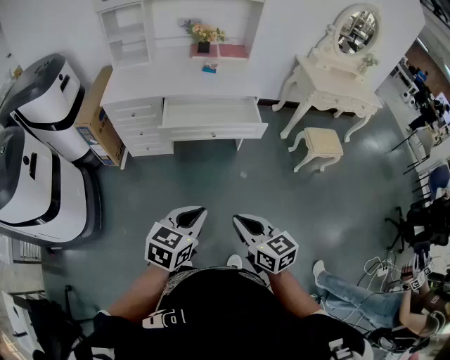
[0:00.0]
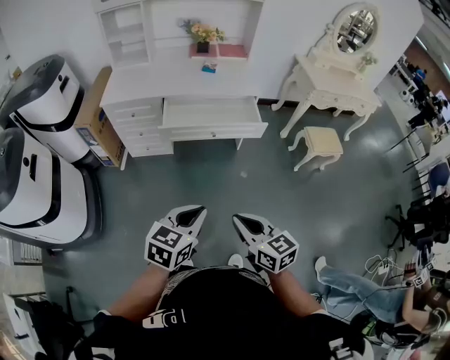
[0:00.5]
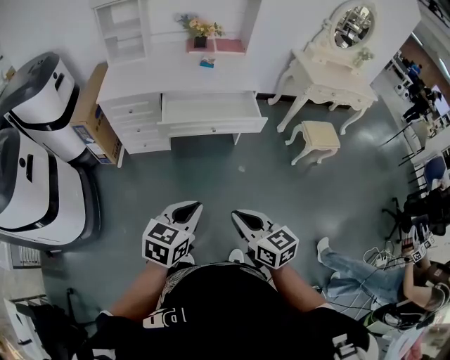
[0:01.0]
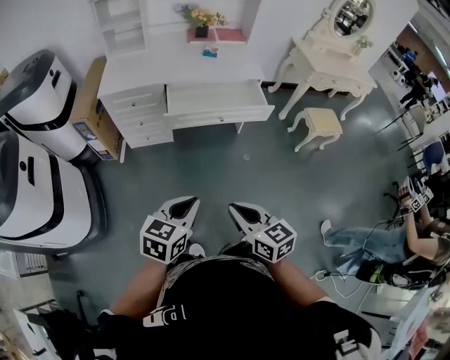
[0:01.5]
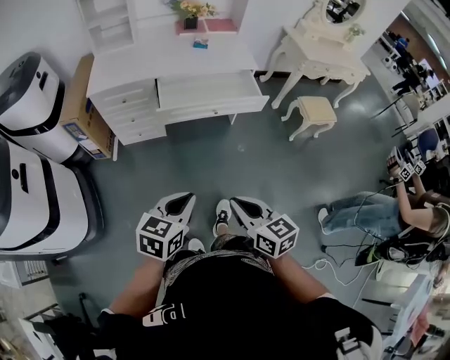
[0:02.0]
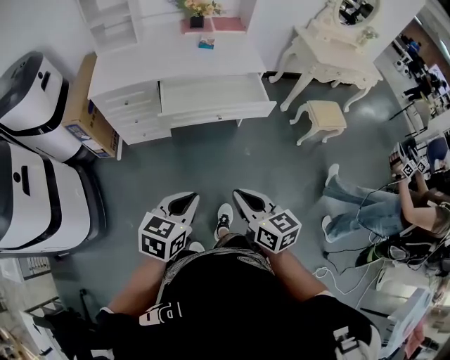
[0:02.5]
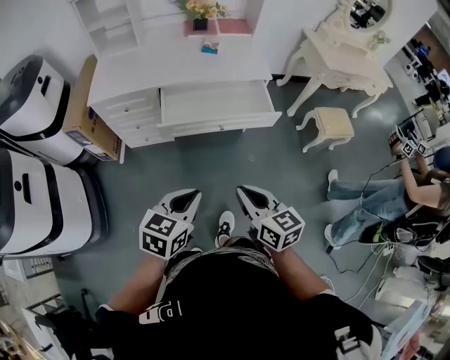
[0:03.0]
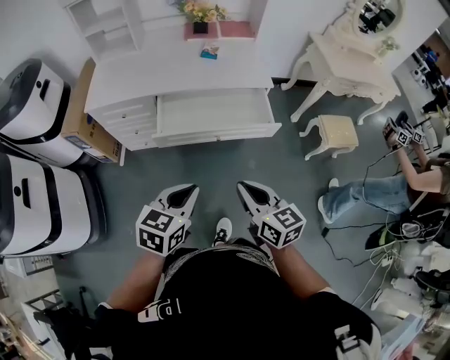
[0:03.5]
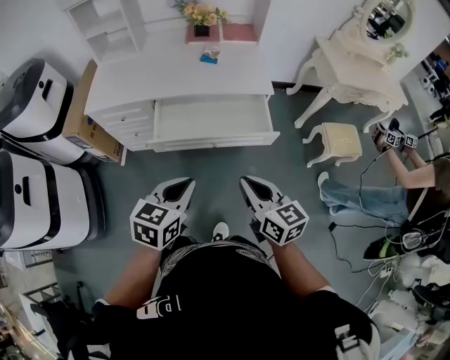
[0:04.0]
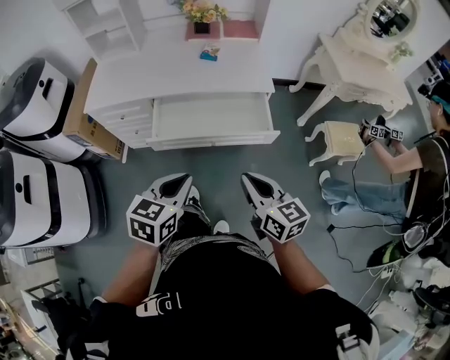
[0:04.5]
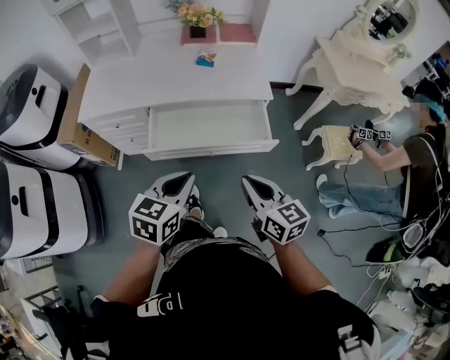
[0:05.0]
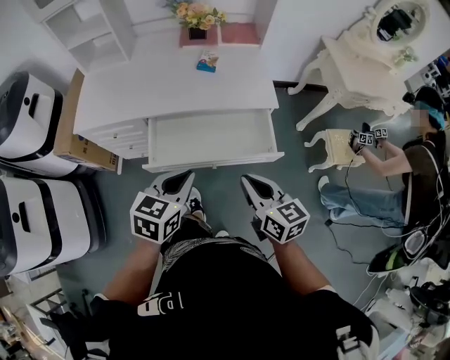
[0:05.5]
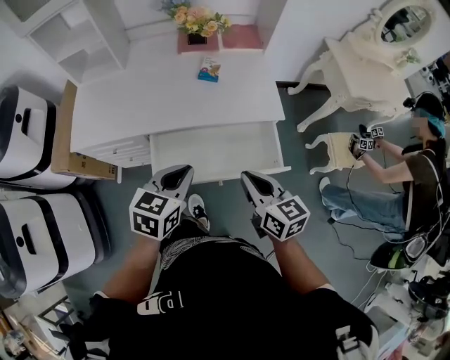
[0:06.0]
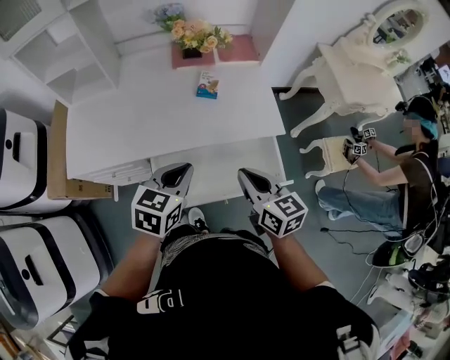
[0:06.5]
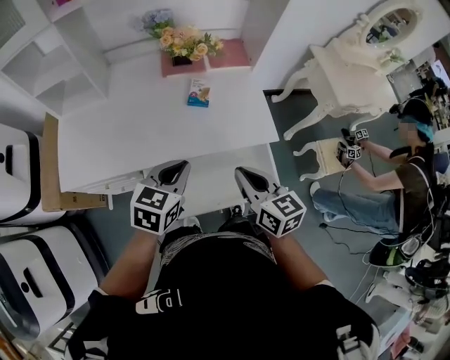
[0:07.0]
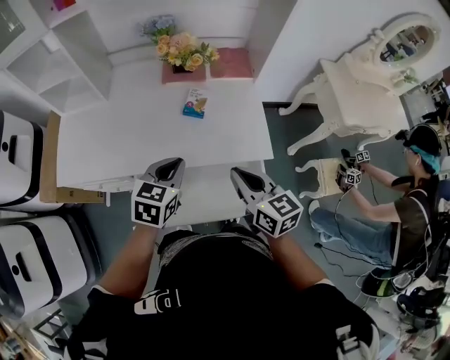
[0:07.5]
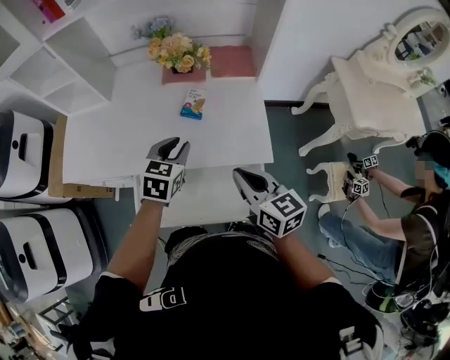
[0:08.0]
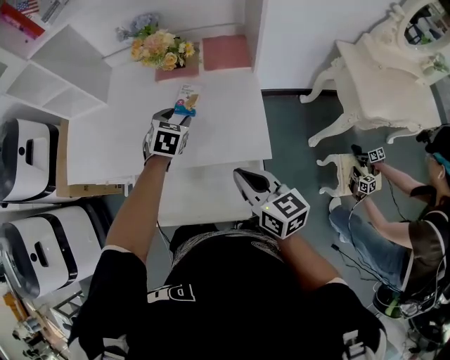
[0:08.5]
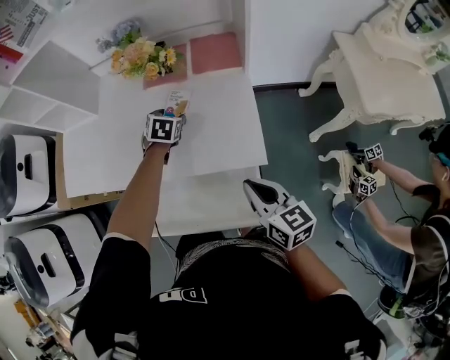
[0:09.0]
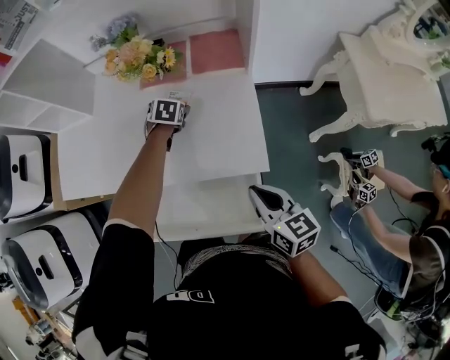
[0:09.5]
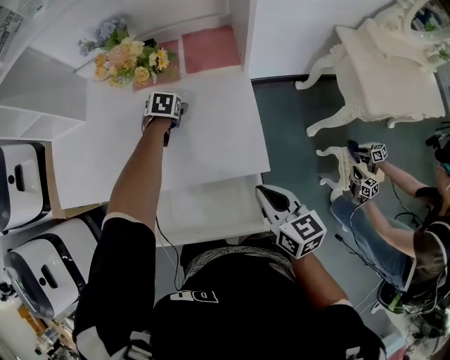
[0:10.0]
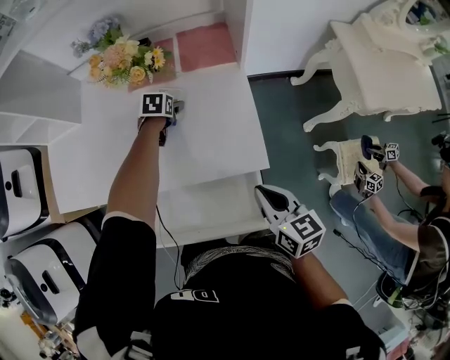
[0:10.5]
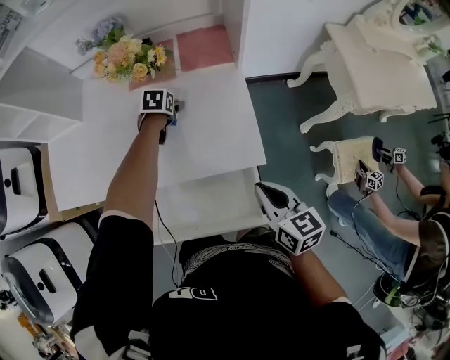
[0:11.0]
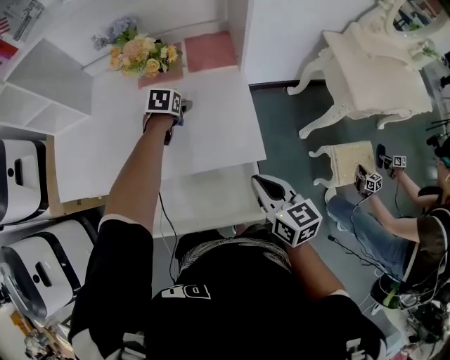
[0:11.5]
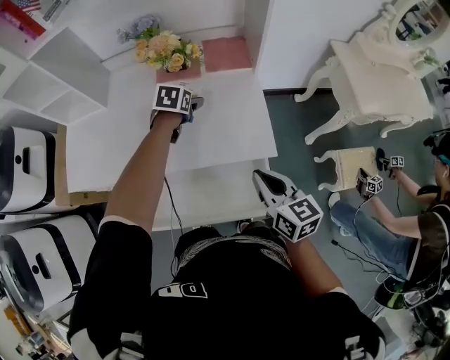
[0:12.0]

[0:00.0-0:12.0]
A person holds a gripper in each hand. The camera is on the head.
0:00.0 to 0:02.0: Both grippers travel together to the left, roughly 10 cm.
0:02.0 to 0:04.0: The grippers both shift forward and to the right by approximately 30 cm.
0:04.0 to 0:06.0: Both grippers travel together forward, approximately 25 cm.
0:06.0 to 0:08.0: The right gripper heads forward and to the right, covering some 20 cm. Meanwhile the left gripper moves forward, roughly 25 cm.
0:08.0 to 0:10.0: The right gripper heads to the right and downward, covering some 15 cm, while the left gripper is displaced forward and downward by approximately 30 cm, turns by some 30 degrees, and opens.
0:10.0 to 0:12.0: The right gripper heads to the left and upward, covering some 10 cm. Meanwhile the left gripper shifts approximately 15 cm upward and backward.

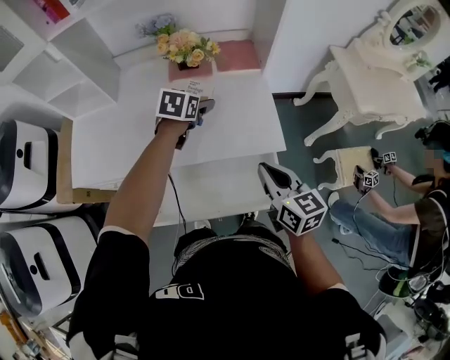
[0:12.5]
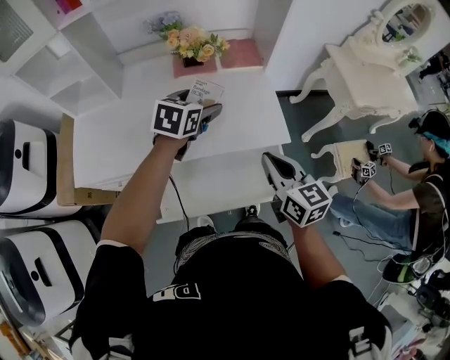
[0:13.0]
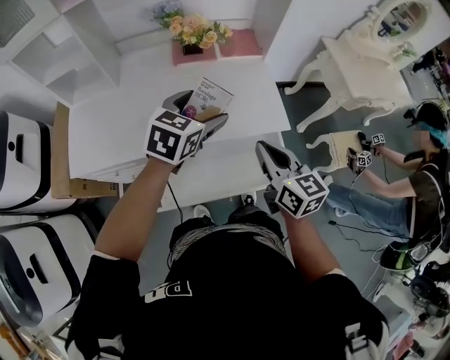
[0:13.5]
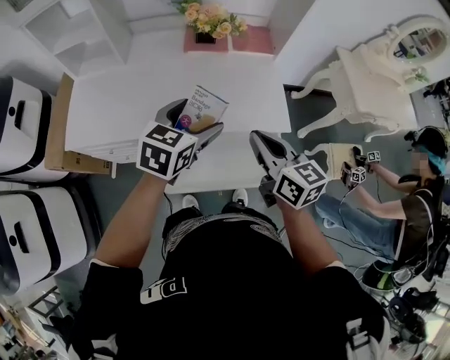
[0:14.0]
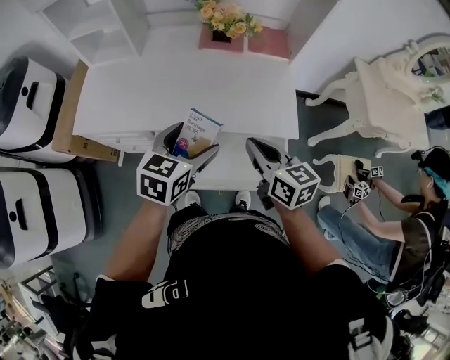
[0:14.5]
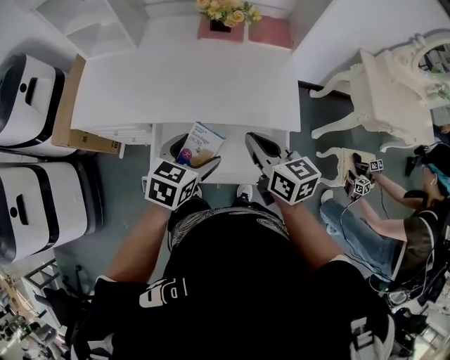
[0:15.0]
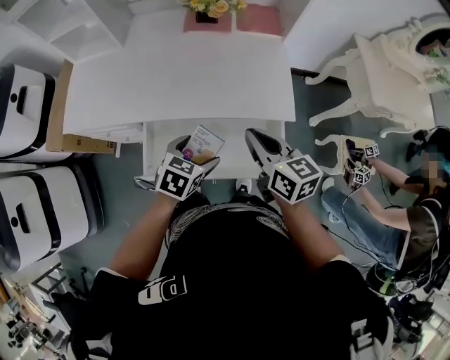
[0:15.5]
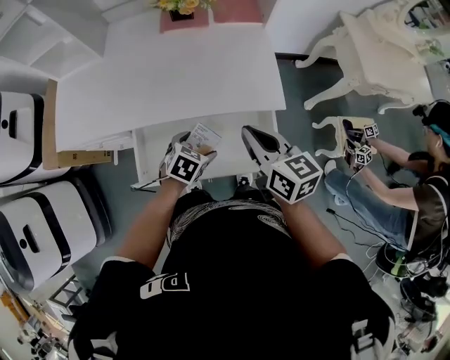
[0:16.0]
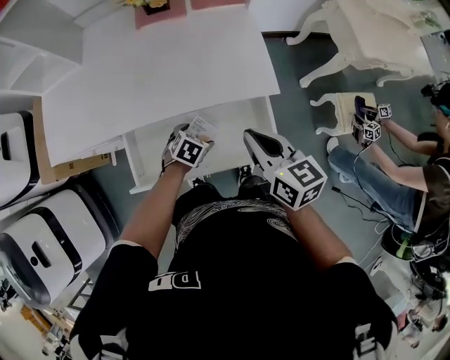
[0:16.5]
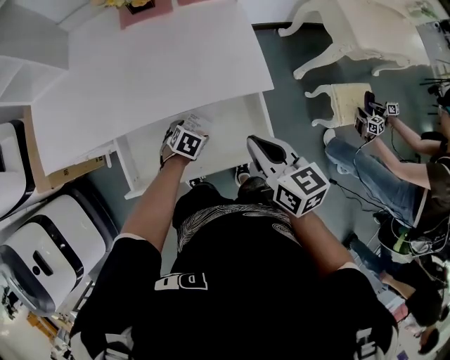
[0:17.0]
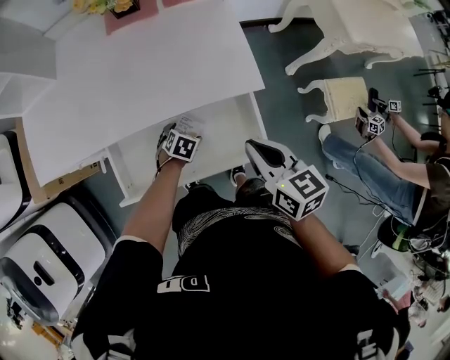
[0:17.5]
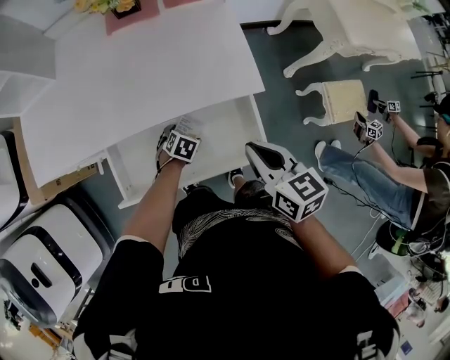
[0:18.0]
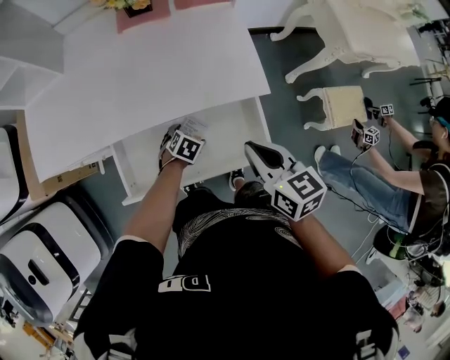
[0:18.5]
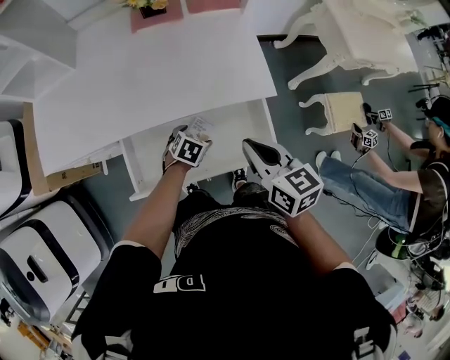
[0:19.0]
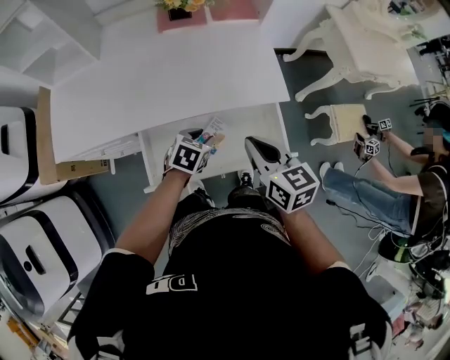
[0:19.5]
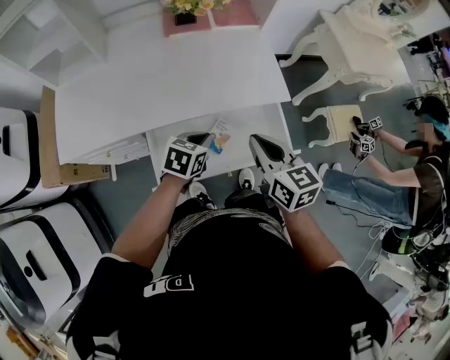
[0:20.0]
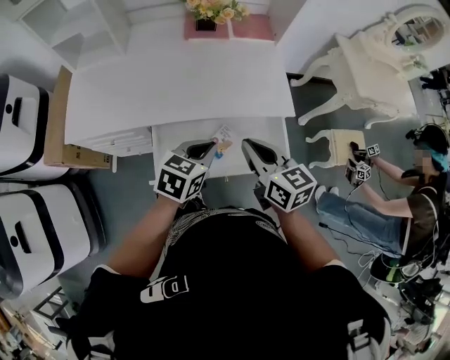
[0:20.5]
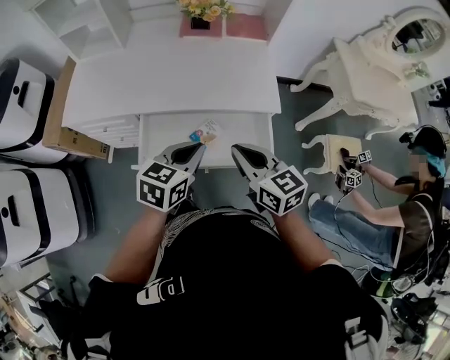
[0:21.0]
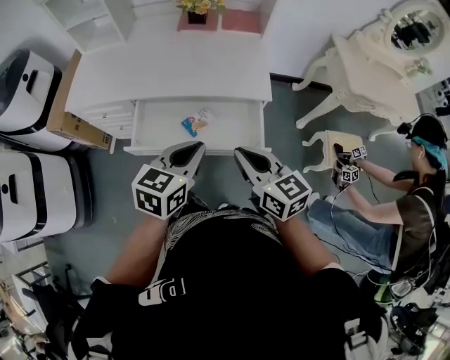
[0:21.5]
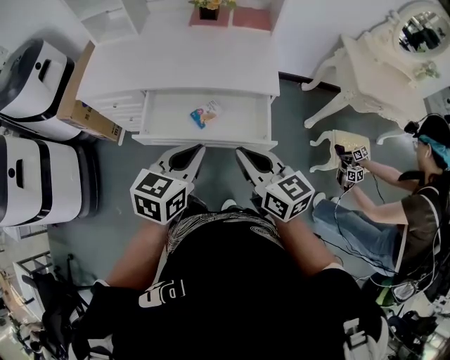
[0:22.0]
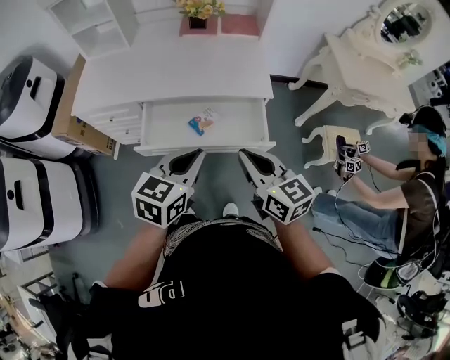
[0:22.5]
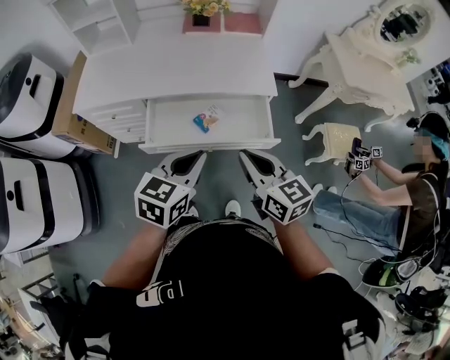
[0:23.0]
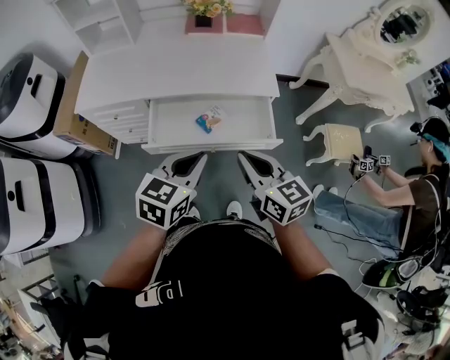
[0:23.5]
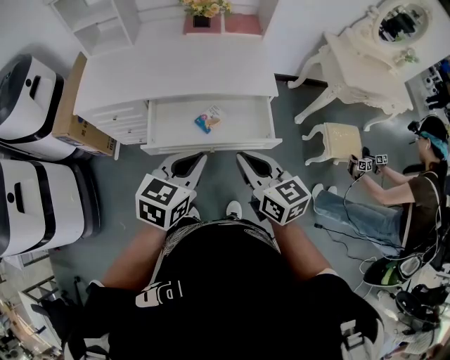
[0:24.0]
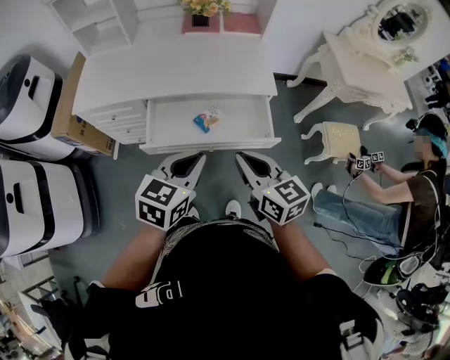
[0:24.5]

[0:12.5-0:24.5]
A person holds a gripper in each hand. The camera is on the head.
0:12.5 to 0:14.5: The right gripper heads to the left, covering some 10 cm. The left gripper moves backward, approximately 25 cm.
0:14.5 to 0:16.5: The left gripper travels downward by about 30 cm, and tips its fingers downward by roughly 40 degrees. The right gripper goes roughly 10 cm to the right and downward.
0:16.5 to 0:18.5: The left gripper heads downward, covering roughly 5 cm.
0:18.5 to 0:20.5: The right gripper is displaced to the left, backward and upward by approximately 15 cm. Meanwhile the left gripper is displaced upward by roughly 30 cm, points its fingers some 40 degrees further upward, and closes its fingers.
0:20.5 to 0:22.5: The left gripper moves backward and upward, about 20 cm. The right gripper heads backward and to the right, covering roughly 20 cm.
0:22.5 to 0:24.5: The right gripper ends up roughly 5 cm from where it was.

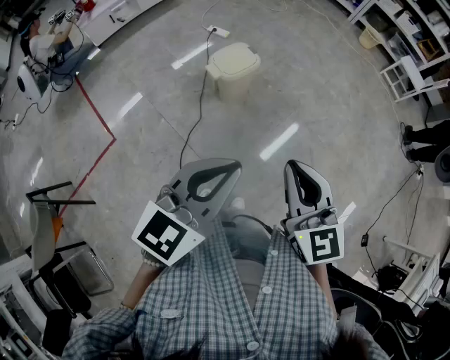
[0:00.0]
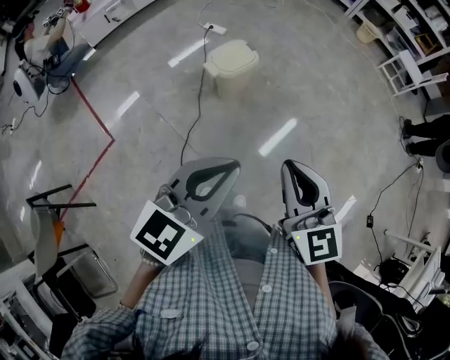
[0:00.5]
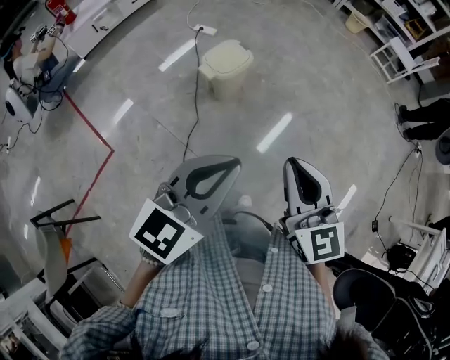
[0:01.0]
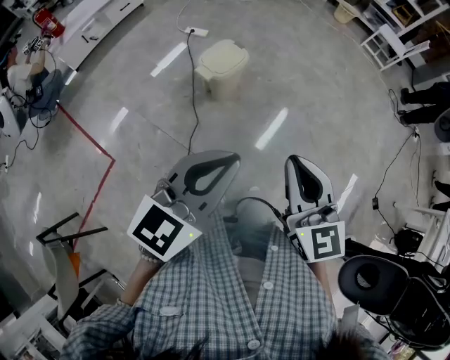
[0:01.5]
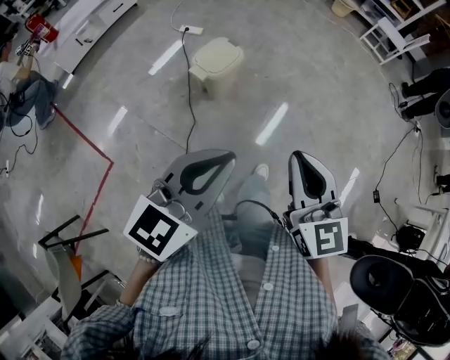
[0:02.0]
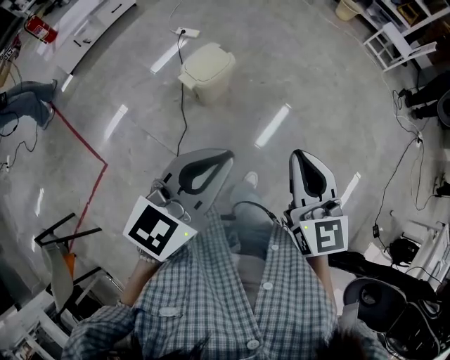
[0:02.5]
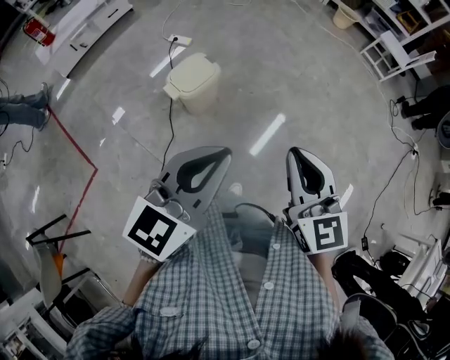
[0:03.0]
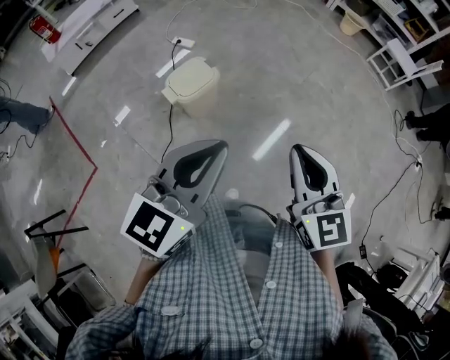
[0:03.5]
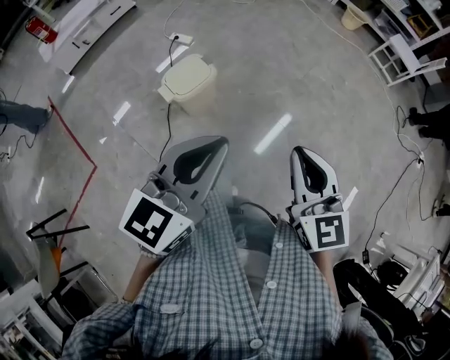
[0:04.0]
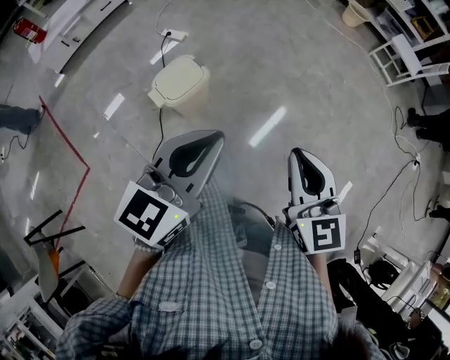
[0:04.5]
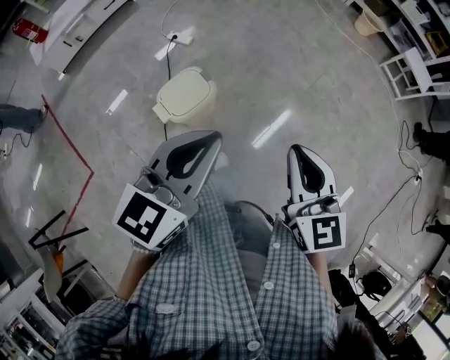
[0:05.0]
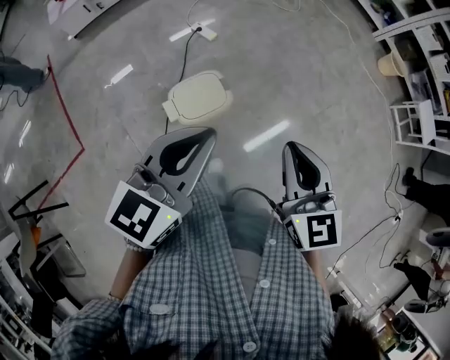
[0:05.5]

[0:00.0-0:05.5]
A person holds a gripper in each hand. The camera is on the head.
0:00.0 to 0:02.0: The left gripper is displaced to the left by roughly 5 cm.
0:02.0 to 0:03.5: The two grippers go roughly 25 cm forward and to the right.
0:03.5 to 0:05.5: The right gripper moves forward, roughly 30 cm. The left gripper travels forward and to the left by approximately 30 cm.
